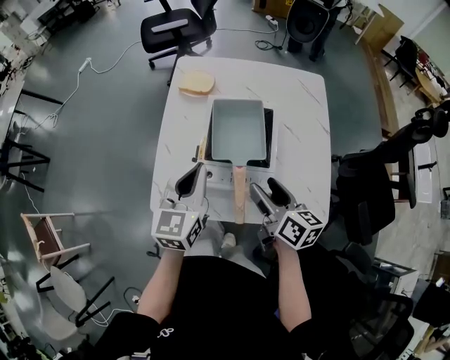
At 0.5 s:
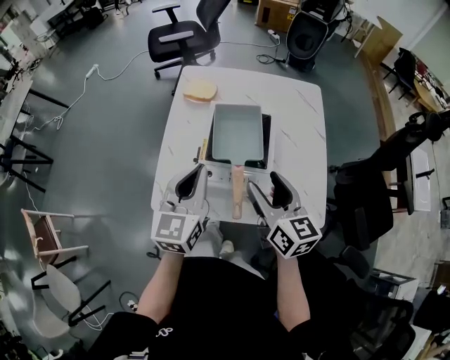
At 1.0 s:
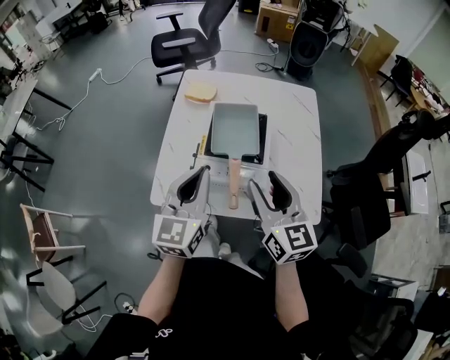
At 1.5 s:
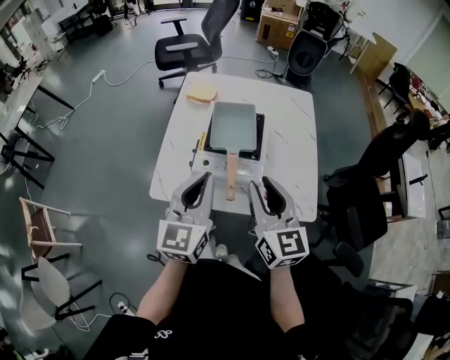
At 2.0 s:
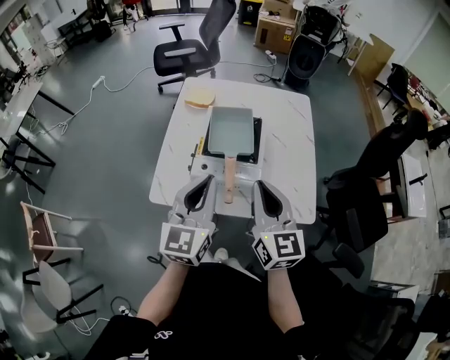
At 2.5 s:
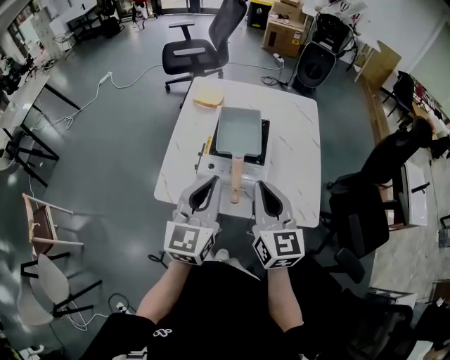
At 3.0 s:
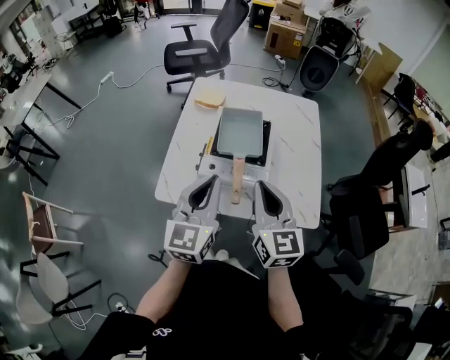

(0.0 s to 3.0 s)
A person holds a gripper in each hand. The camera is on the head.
0.0 s - 1.5 s: The left gripper moves backward and upward, approximately 15 cm, while the right gripper moves upward and backward, some 15 cm, turns by roughly 40 degrees, and closes up.
1.5 s - 3.0 s: The right gripper closes.

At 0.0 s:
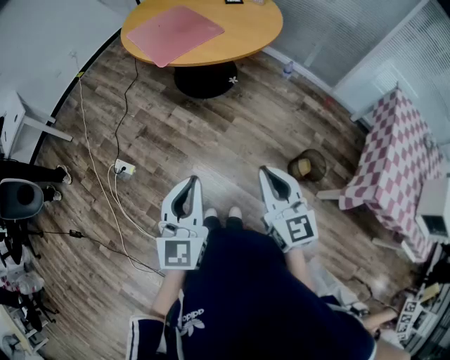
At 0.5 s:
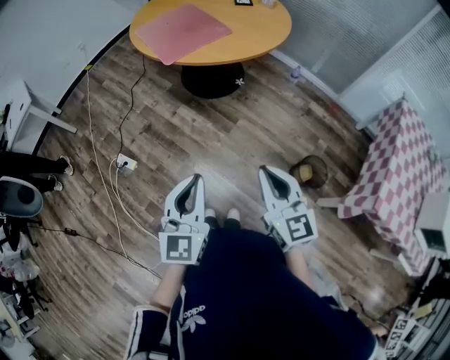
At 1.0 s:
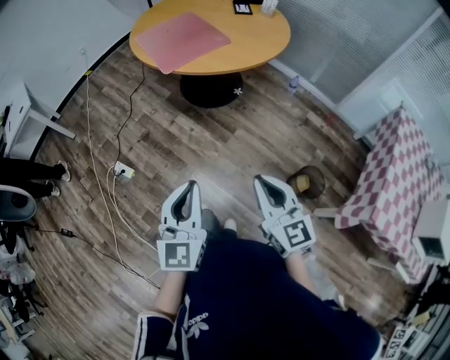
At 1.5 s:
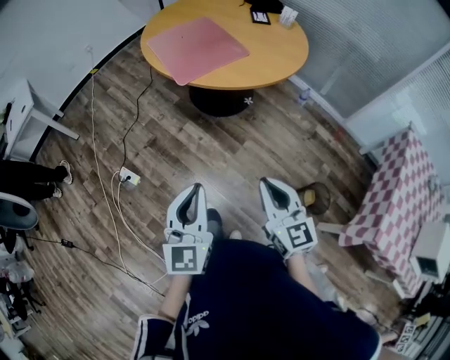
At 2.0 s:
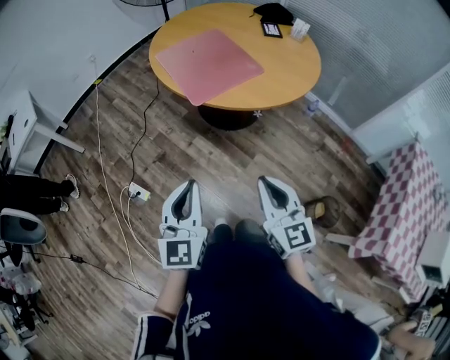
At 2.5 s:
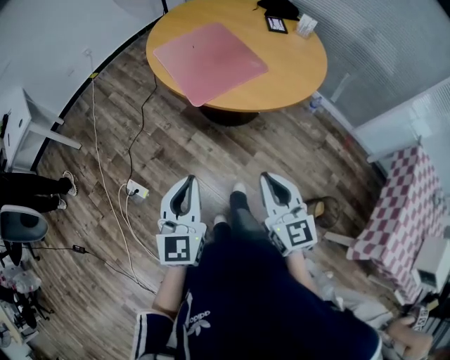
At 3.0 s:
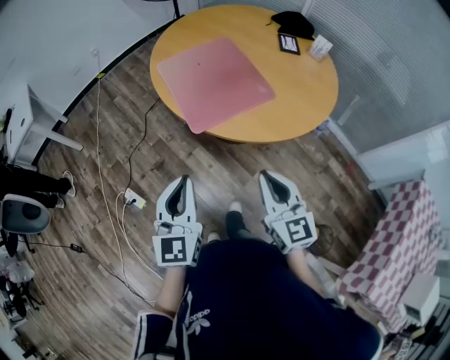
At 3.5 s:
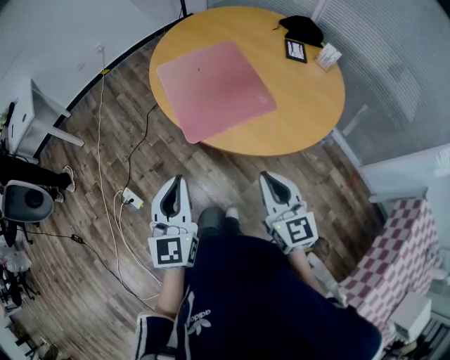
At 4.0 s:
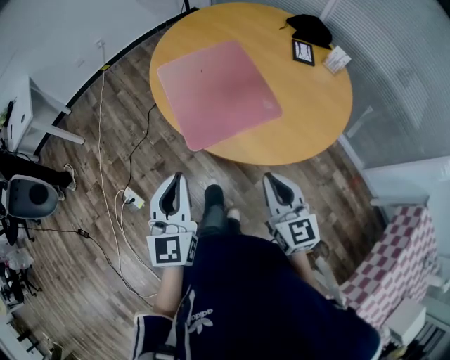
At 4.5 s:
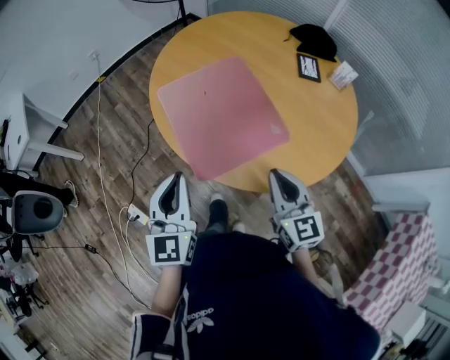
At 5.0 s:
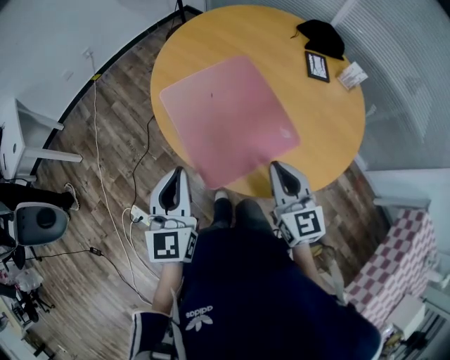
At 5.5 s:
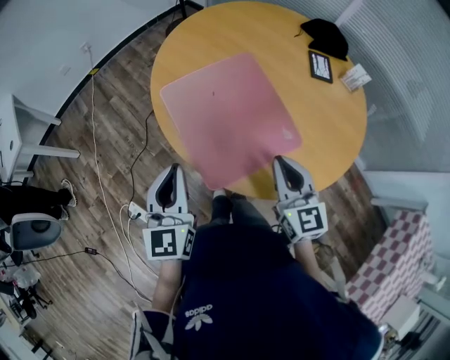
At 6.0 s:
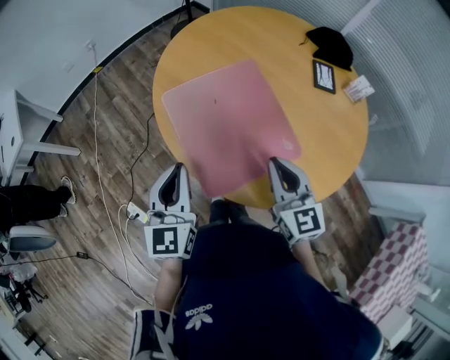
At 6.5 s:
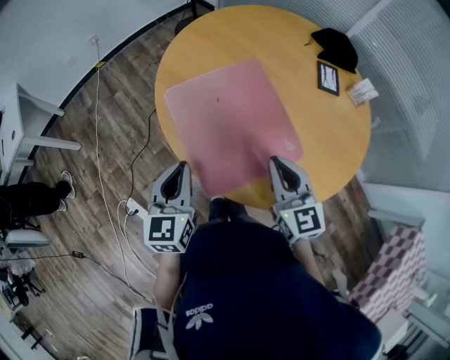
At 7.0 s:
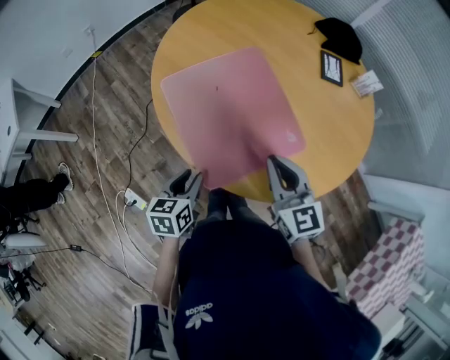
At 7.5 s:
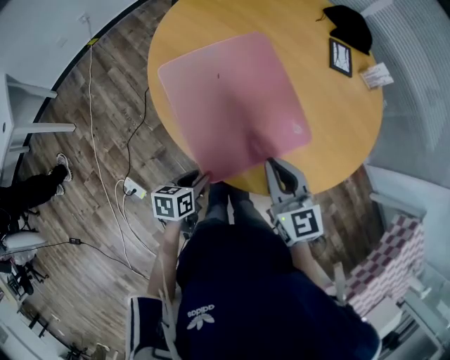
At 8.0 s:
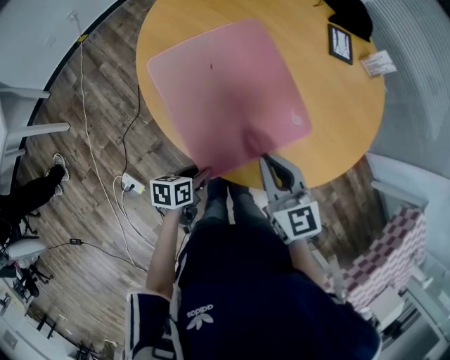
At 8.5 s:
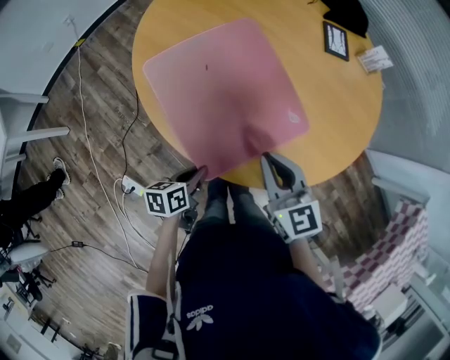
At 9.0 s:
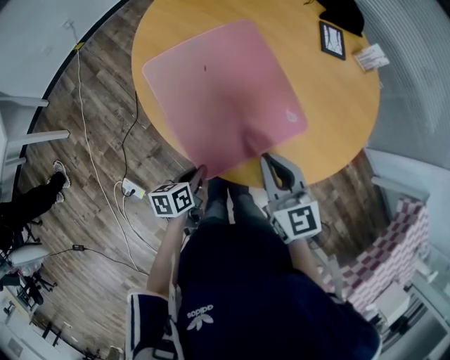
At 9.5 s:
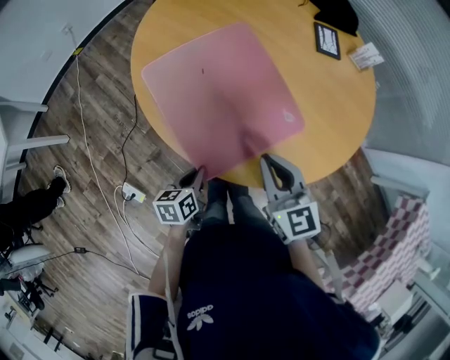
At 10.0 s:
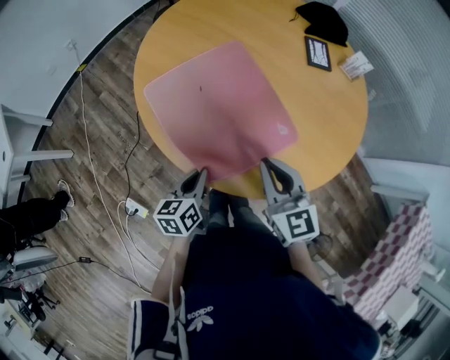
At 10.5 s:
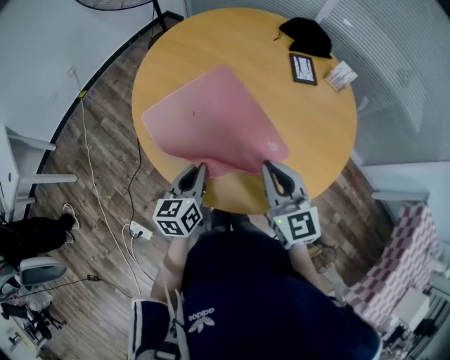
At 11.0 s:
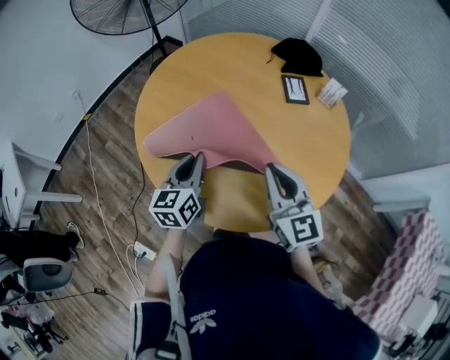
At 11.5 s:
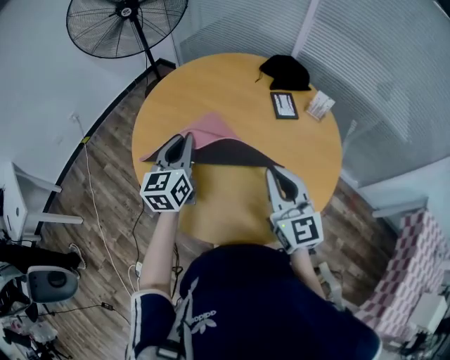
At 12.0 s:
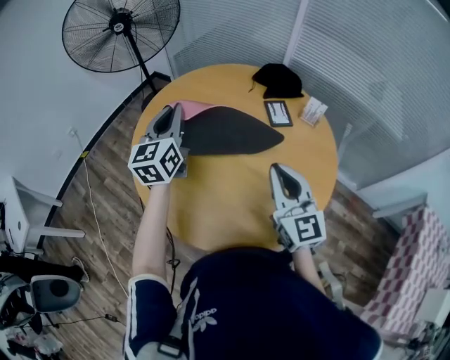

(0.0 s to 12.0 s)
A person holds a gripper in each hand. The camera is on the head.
0.0 s - 2.0 s: Both grippers move forward and to the left, about 20 cm.
2.0 s - 4.0 s: The two grippers go approximately 25 cm forward.
4.0 s - 6.0 s: The two grippers go approximately 20 cm forward.
6.0 s - 8.0 s: The left gripper shifts roughly 30 cm downward, tips its fingers downward by some 30 degrees, and opens. Meanwhile the right gripper goes some 5 cm downward.
8.0 s - 10.0 s: The left gripper travels upward and forward by about 10 cm, rotates some 30 degrees, and closes.
10.0 s - 12.0 s: The right gripper heads upward, forward and to the right, covering some 20 cm, and changes its angle by some 20 degrees. The left gripper heads forward and upward, covering about 40 cm, and turns by approximately 40 degrees.

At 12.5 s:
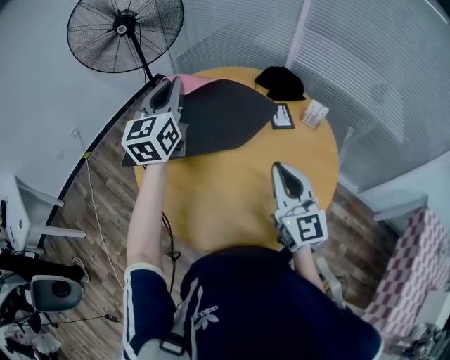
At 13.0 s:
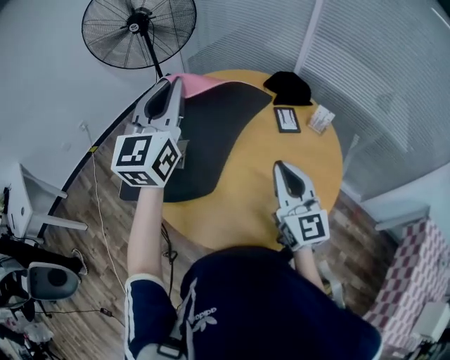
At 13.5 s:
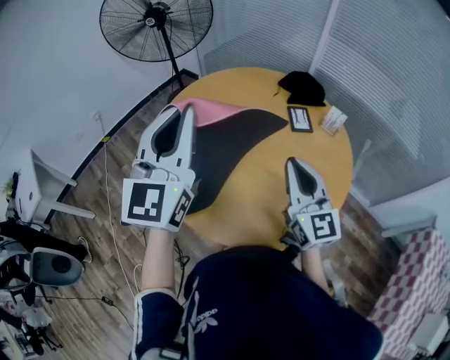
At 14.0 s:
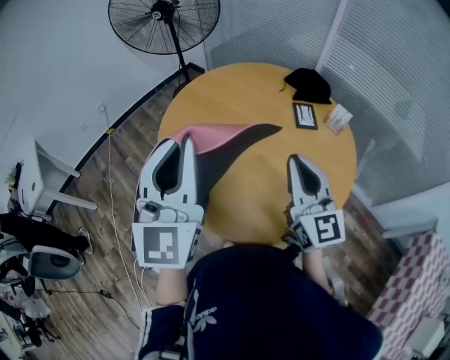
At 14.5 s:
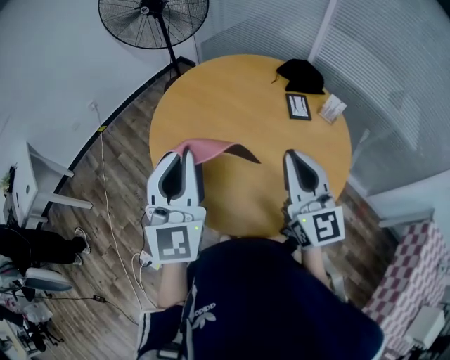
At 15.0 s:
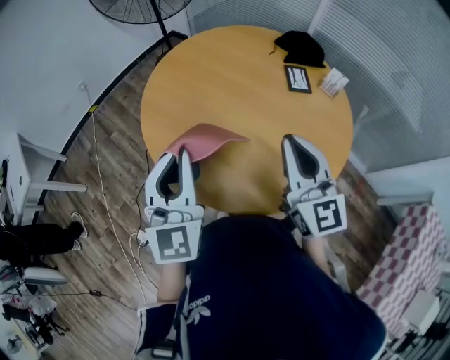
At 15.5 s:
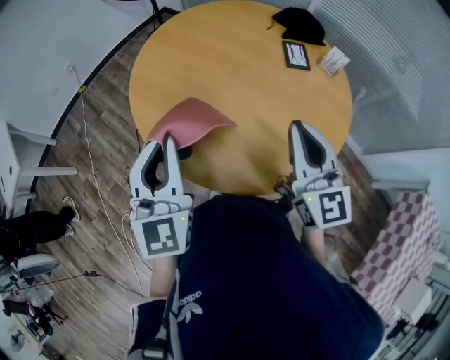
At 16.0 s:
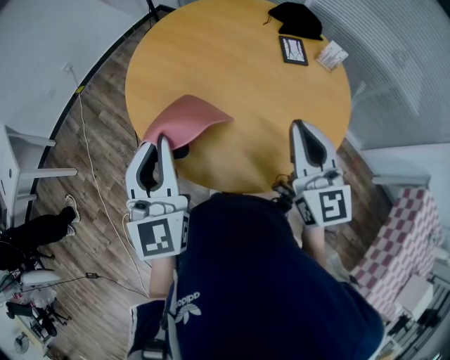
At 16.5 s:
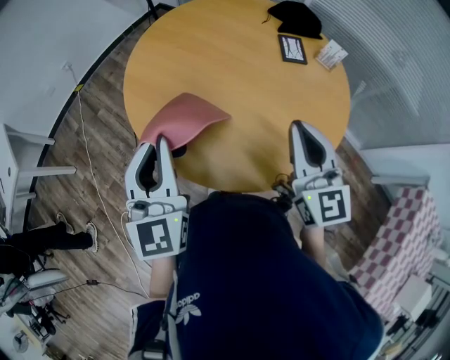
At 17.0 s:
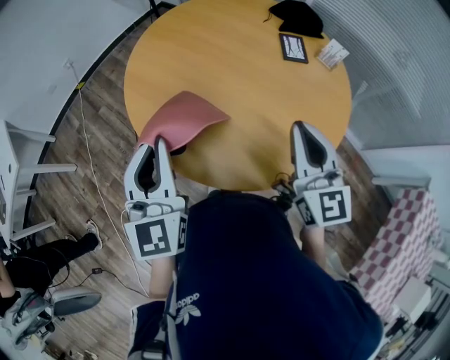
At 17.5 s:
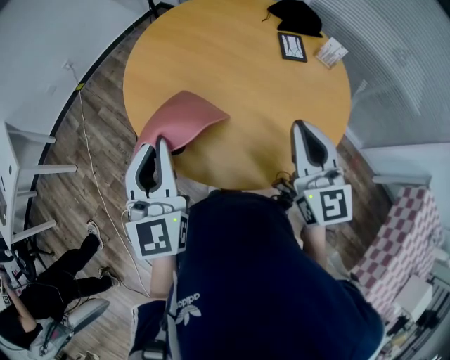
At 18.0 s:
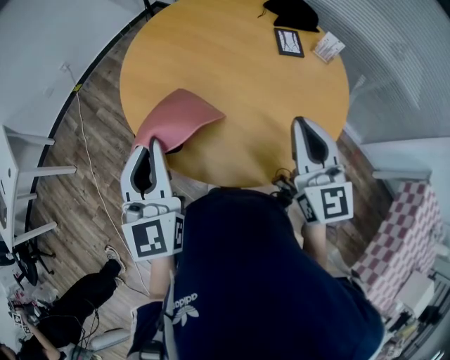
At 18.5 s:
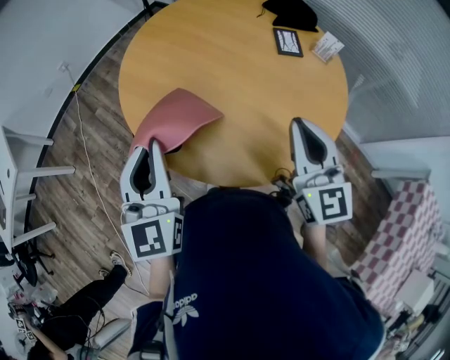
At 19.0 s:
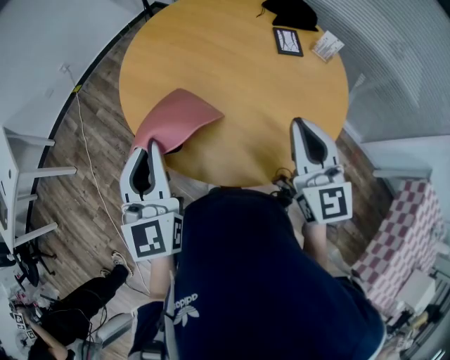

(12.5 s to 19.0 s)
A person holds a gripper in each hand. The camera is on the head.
12.5 s - 14.5 s: The left gripper moves backward, some 25 cm, and changes its angle by some 20 degrees. The right gripper moves upward, about 5 cm.
14.5 s - 17.0 s: Both grippers travel together downward, approximately 5 cm.
17.0 s - 19.0 s: The two grippers keep their place.

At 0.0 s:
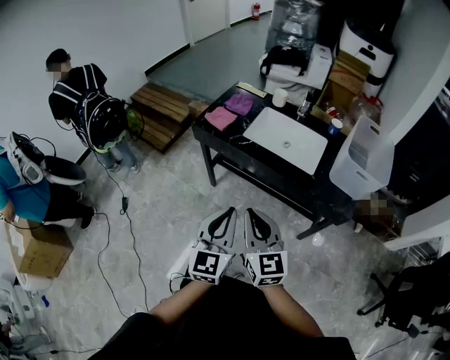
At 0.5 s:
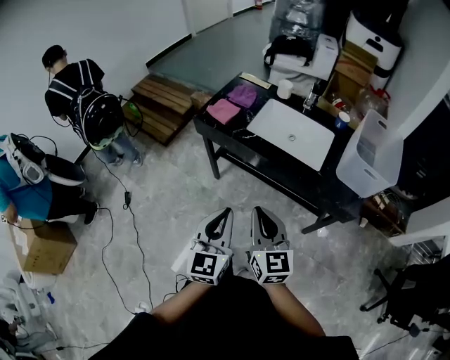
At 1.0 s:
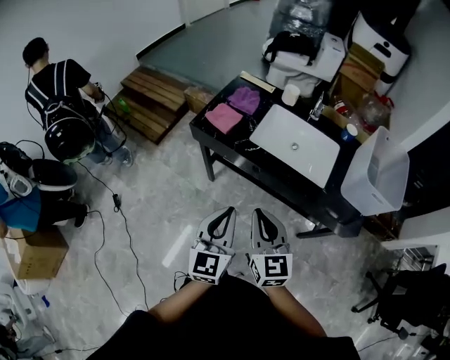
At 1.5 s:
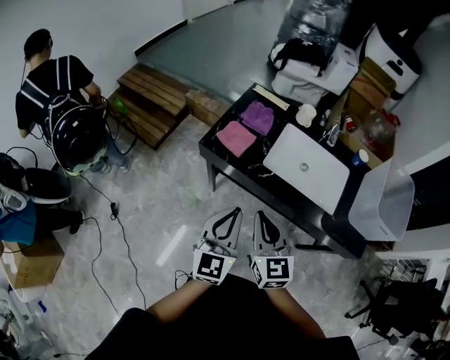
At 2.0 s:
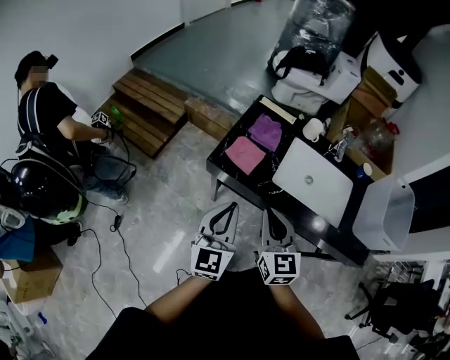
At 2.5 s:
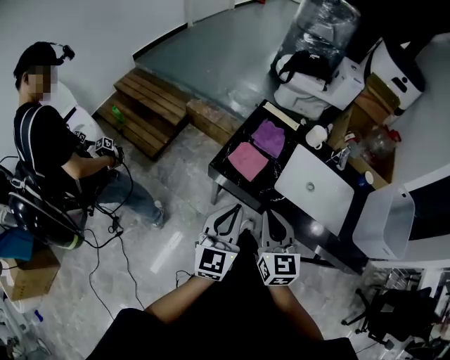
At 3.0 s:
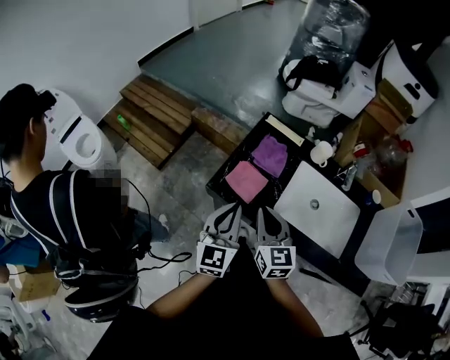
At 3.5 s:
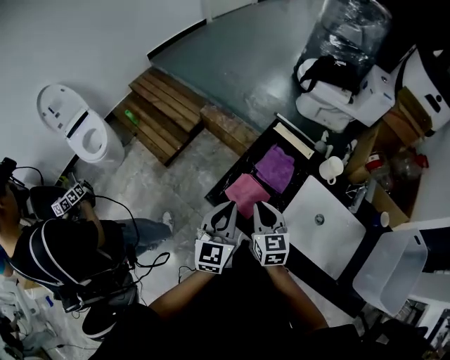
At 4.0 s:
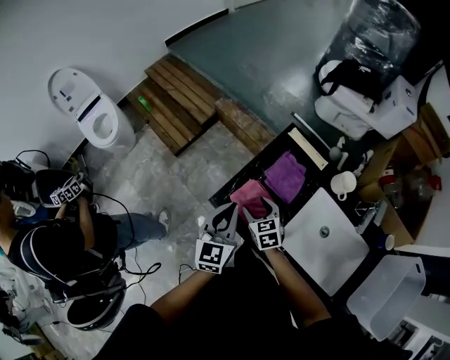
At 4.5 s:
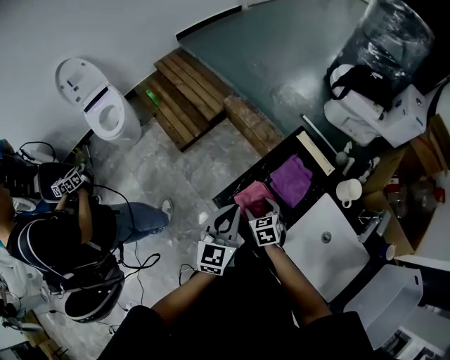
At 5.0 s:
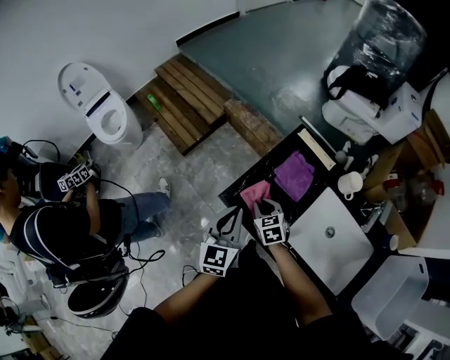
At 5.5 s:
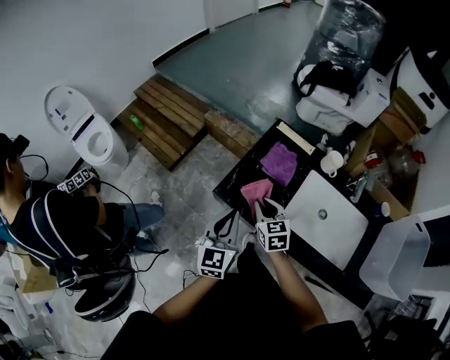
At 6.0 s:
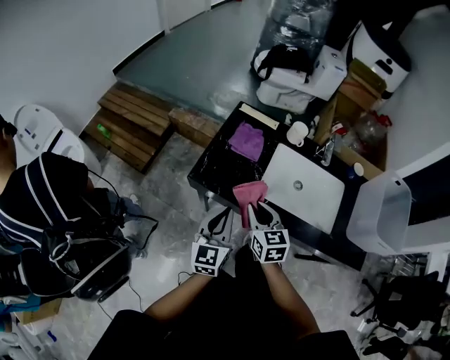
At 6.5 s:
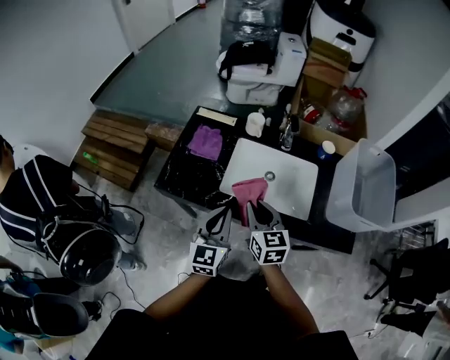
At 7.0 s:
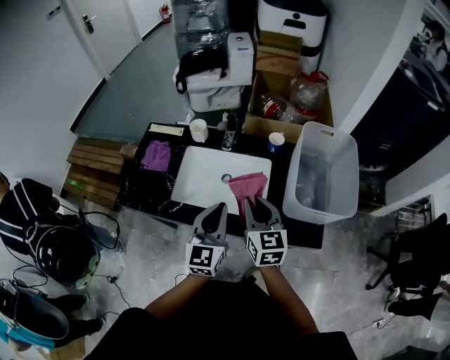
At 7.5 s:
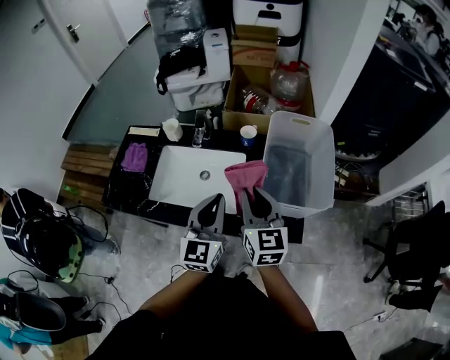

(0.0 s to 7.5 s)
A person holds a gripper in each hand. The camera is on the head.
0.0 s - 2.0 s: The grippers both shift forward and to the left by about 35 cm.
2.0 s - 4.0 s: Both grippers move forward and downward, approximately 30 cm. The right gripper changes its angle by some 40 degrees, and opens its fingers.
4.0 s - 5.5 s: The right gripper shifts some 10 cm upward and backward, and closes up. The left gripper travels backward by about 10 cm.
5.5 s - 7.5 s: The two grippers travel together, approximately 50 cm. The left gripper rotates about 30 degrees. The right gripper turns by about 40 degrees.
